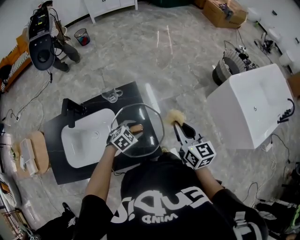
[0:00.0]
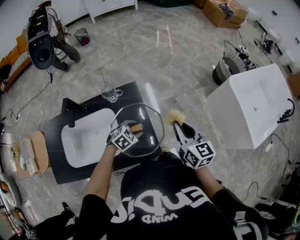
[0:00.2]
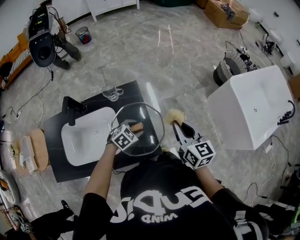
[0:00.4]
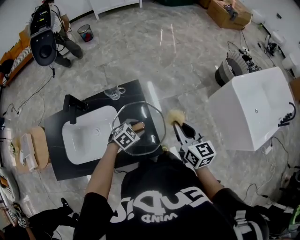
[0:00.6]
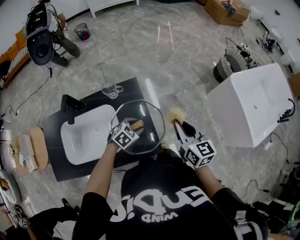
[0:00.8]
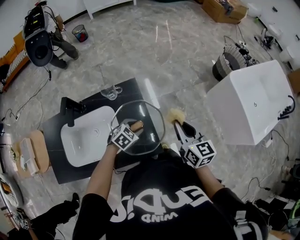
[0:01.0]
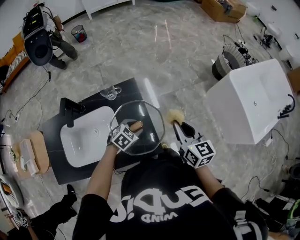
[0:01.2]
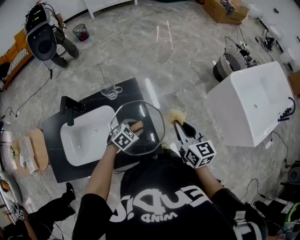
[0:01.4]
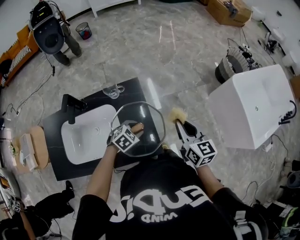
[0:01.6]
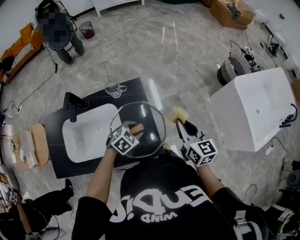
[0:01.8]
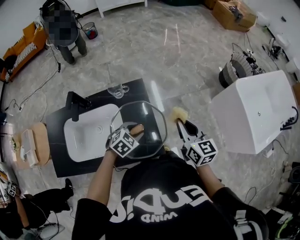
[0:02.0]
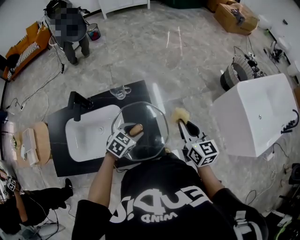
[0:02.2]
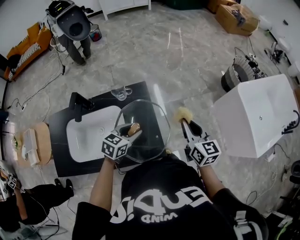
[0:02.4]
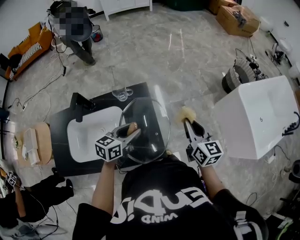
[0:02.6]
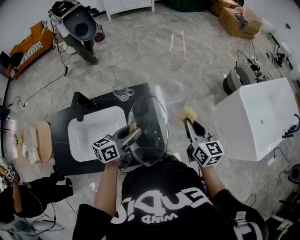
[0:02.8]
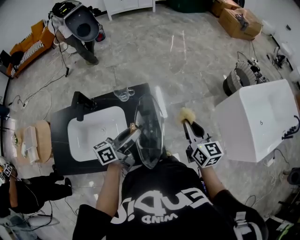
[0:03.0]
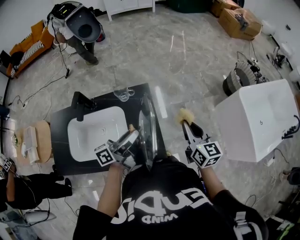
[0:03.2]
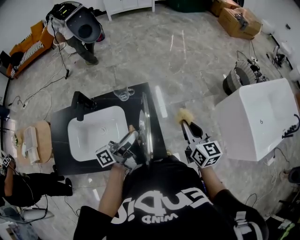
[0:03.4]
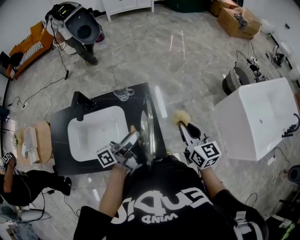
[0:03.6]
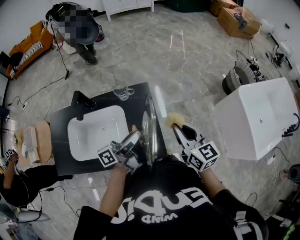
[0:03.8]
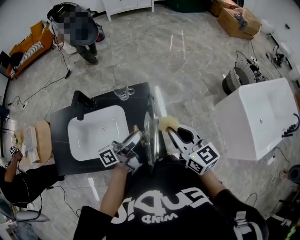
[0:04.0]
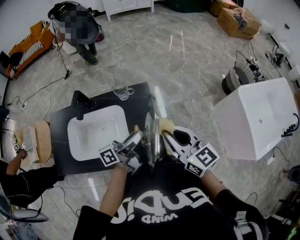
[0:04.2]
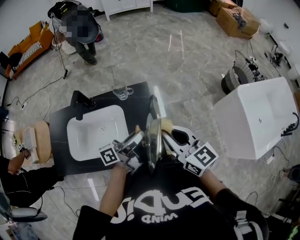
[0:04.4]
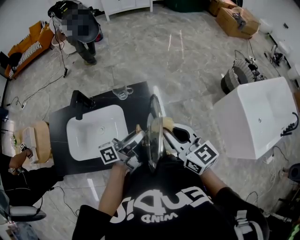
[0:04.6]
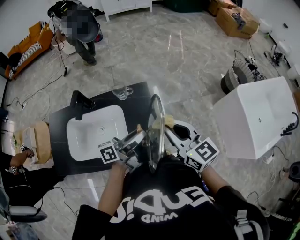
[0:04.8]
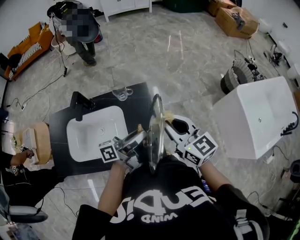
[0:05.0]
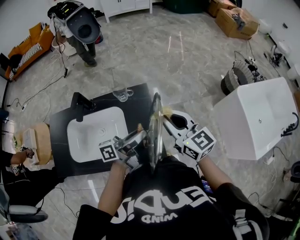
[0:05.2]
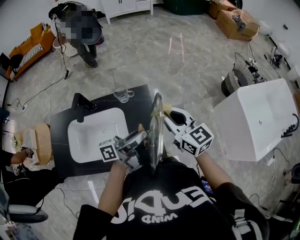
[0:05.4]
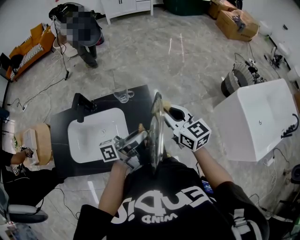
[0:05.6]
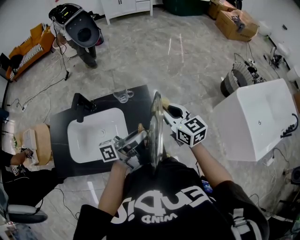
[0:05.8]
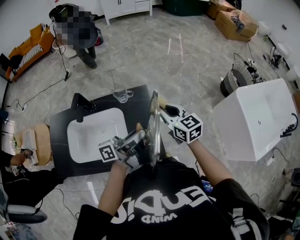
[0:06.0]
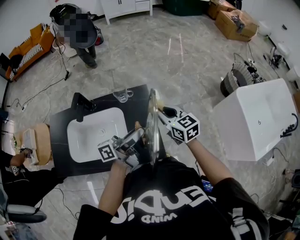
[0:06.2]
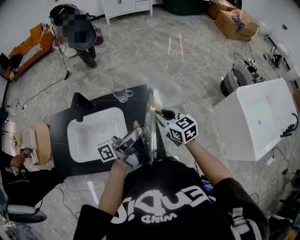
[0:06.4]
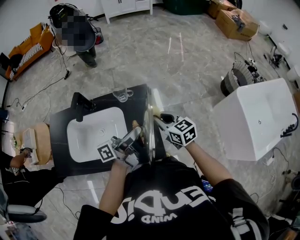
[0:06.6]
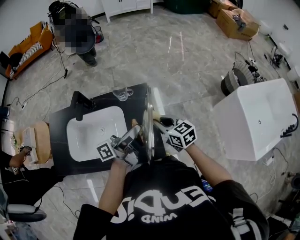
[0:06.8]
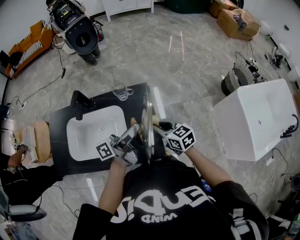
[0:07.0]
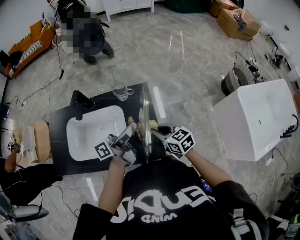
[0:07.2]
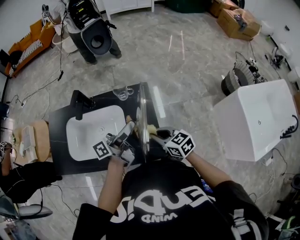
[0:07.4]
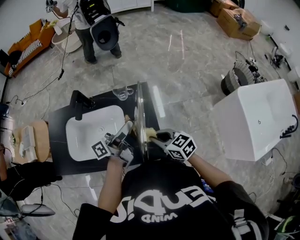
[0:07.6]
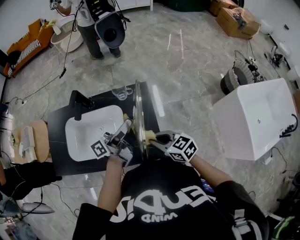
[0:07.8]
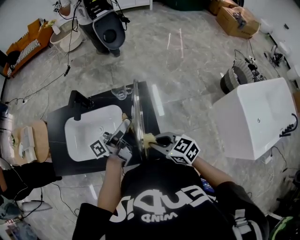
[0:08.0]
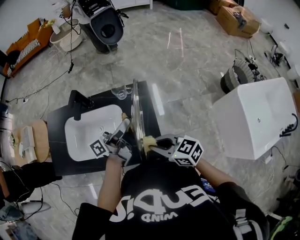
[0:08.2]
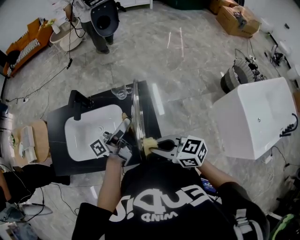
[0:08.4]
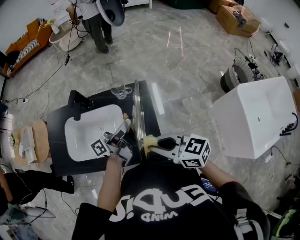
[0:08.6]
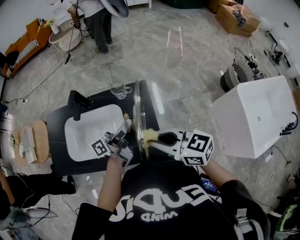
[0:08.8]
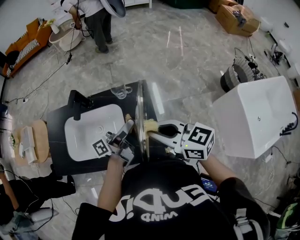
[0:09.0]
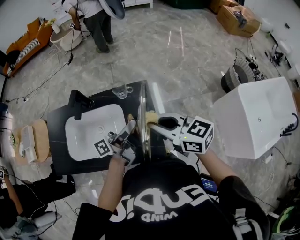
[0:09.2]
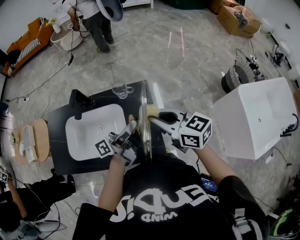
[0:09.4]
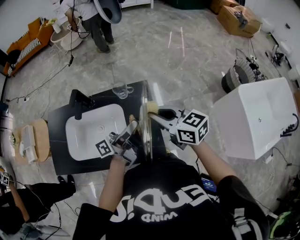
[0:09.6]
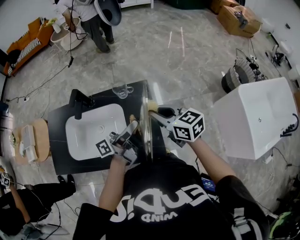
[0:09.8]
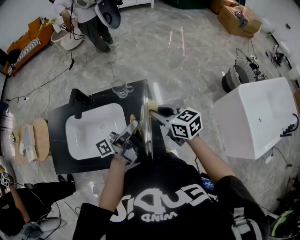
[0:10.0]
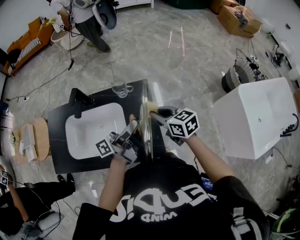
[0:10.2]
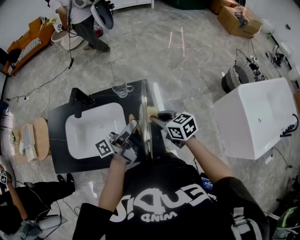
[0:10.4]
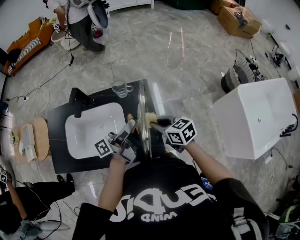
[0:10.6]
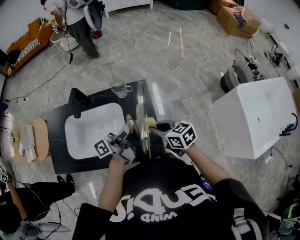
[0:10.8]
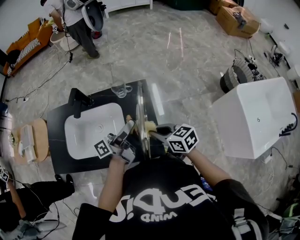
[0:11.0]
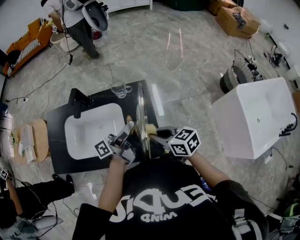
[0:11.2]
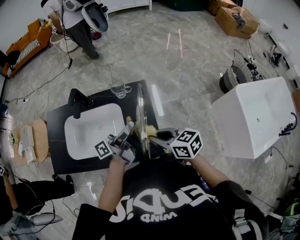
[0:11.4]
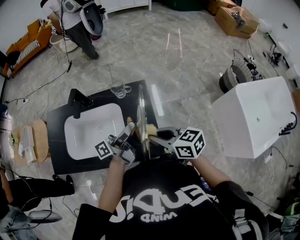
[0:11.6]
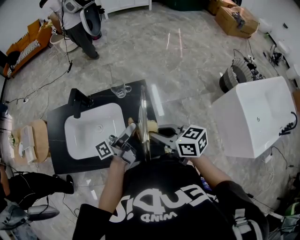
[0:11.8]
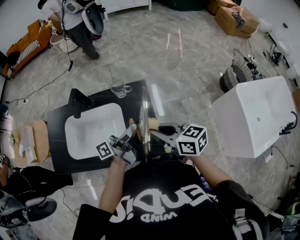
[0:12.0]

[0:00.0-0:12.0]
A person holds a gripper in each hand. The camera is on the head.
0:00.0 to 0:01.6: There are only small adjustments of the grippers.
0:01.6 to 0:03.0: The left gripper goes some 20 cm upward, and angles its fingers upward, by some 60 degrees.
0:03.0 to 0:04.4: The right gripper moves to the left, upward and backward, roughly 15 cm, and swivels some 20 degrees.
0:04.4 to 0:06.0: The right gripper moves forward and downward, roughly 15 cm.
0:06.0 to 0:07.6: The left gripper changes place by approximately 5 cm. The right gripper heads backward, downward and to the left, covering roughly 15 cm, and swivels some 30 degrees.
0:07.6 to 0:09.0: The right gripper travels upward by roughly 15 cm.
0:09.0 to 0:10.4: The right gripper moves downward and forward, about 15 cm, and turns by some 20 degrees.
0:10.4 to 0:12.0: The right gripper goes roughly 10 cm upward and backward.

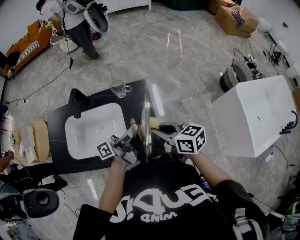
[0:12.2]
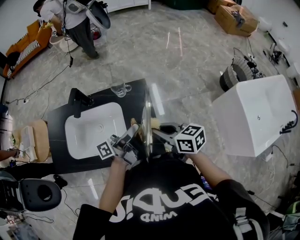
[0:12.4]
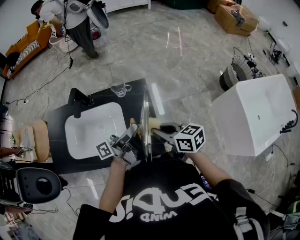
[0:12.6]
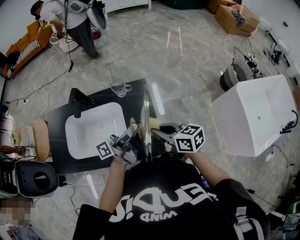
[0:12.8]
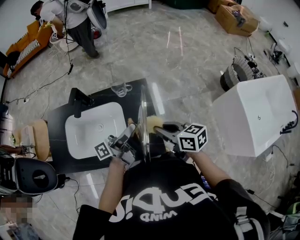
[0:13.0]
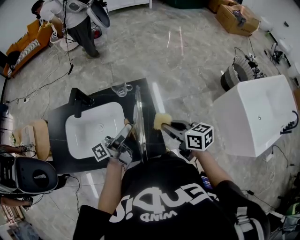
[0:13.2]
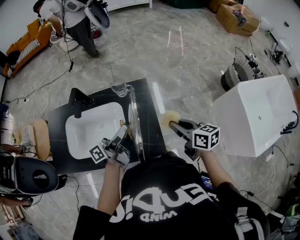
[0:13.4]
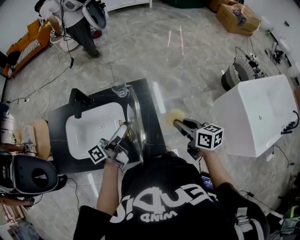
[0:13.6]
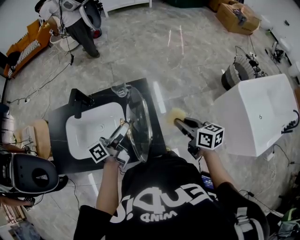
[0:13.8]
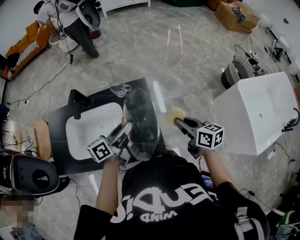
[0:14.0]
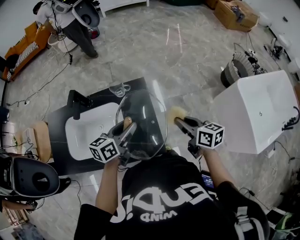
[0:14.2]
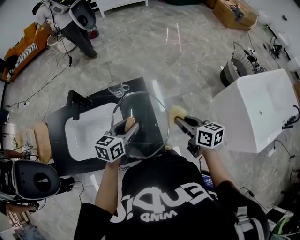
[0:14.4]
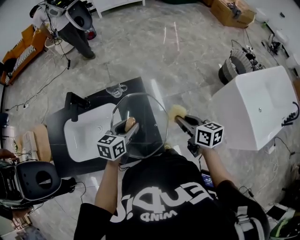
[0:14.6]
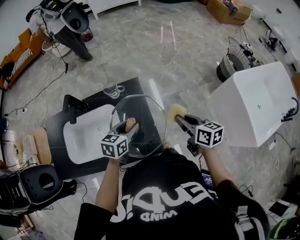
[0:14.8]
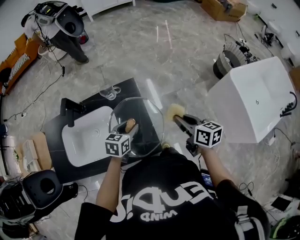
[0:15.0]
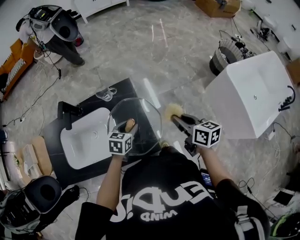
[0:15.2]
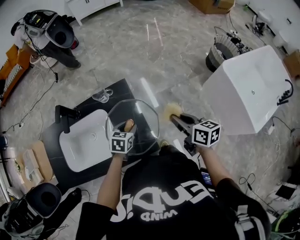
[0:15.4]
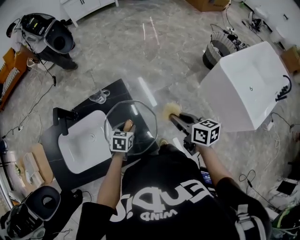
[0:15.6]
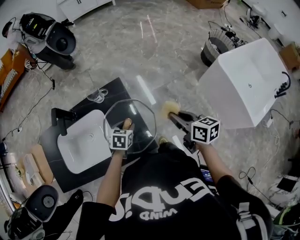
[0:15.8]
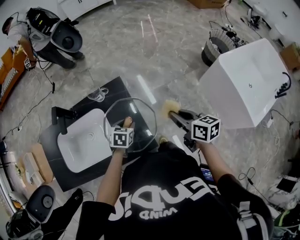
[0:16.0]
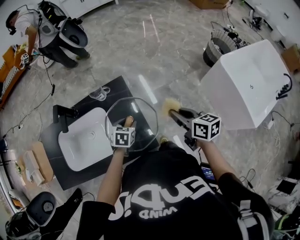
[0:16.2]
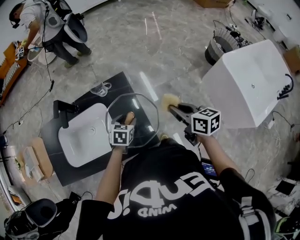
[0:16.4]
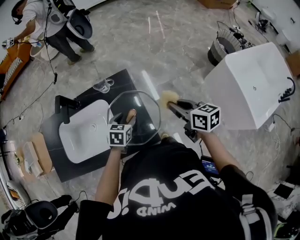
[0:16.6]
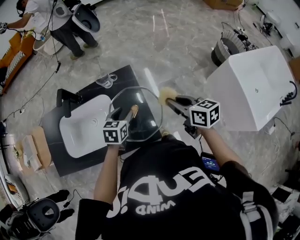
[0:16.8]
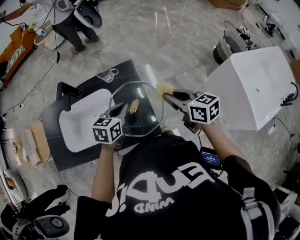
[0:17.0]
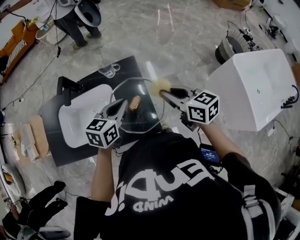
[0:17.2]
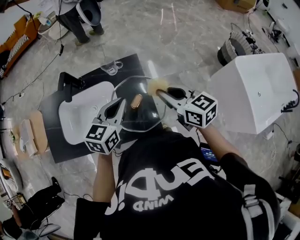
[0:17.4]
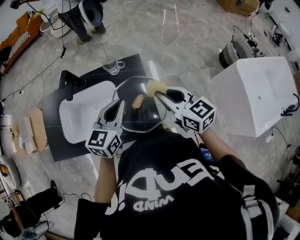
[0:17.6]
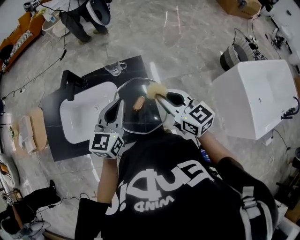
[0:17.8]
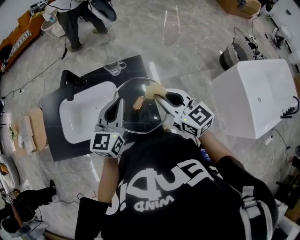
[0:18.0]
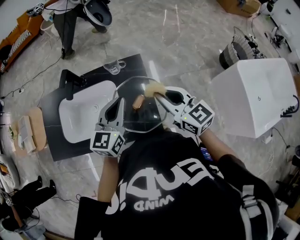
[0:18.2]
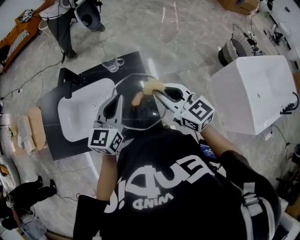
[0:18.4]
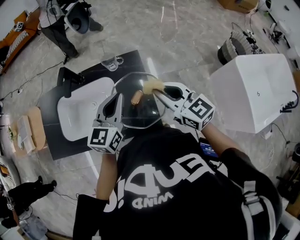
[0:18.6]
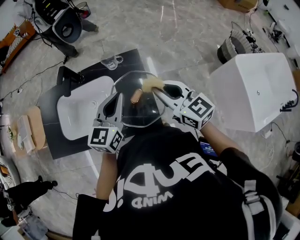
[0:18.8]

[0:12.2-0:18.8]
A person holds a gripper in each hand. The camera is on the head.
0:12.2 to 0:13.8: The right gripper goes roughly 10 cm to the right. The left gripper changes place by approximately 5 cm, and changes its angle by some 20 degrees.
0:13.8 to 0:15.4: The left gripper travels downward and to the right by roughly 15 cm, and points its fingers approximately 50 degrees further downward. The right gripper ends up some 5 cm from where it was.
0:15.4 to 0:17.2: The left gripper travels upward by some 15 cm, changes its angle by roughly 20 degrees, and closes its fingers. Meanwhile the right gripper is displaced to the left and upward by some 10 cm, and changes its angle by about 20 degrees.
0:17.2 to 0:18.8: The right gripper ends up some 5 cm from where it was, and swivels approximately 20 degrees, while the left gripper ends up about 5 cm from where it was, and turns by approximately 20 degrees.

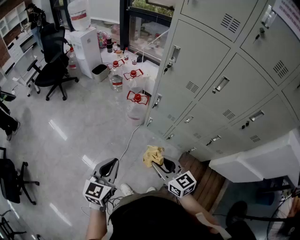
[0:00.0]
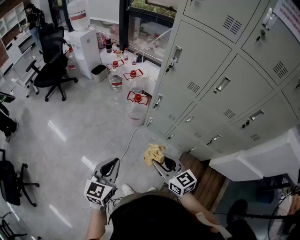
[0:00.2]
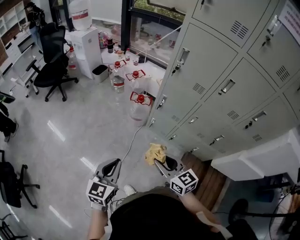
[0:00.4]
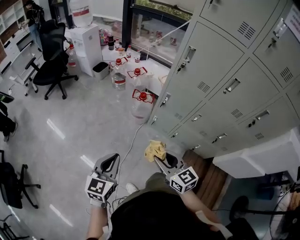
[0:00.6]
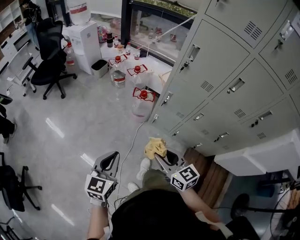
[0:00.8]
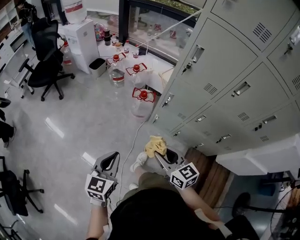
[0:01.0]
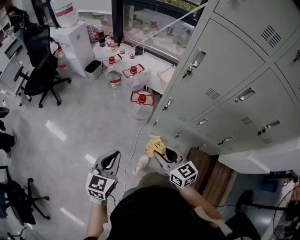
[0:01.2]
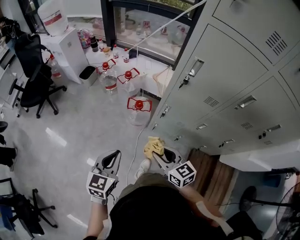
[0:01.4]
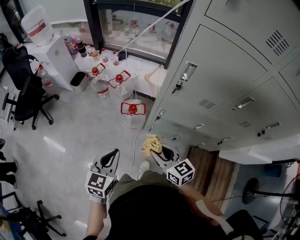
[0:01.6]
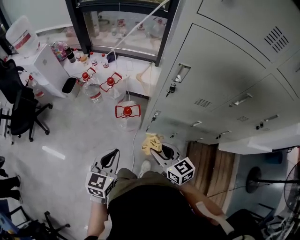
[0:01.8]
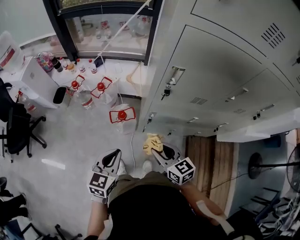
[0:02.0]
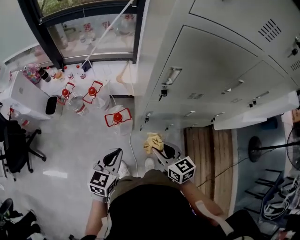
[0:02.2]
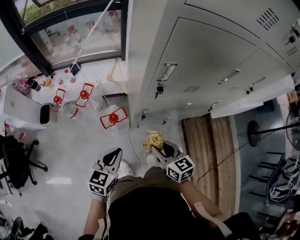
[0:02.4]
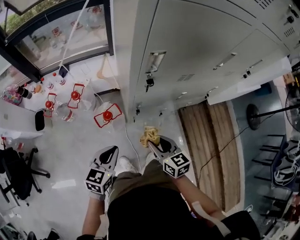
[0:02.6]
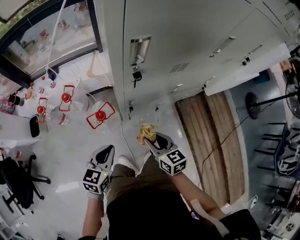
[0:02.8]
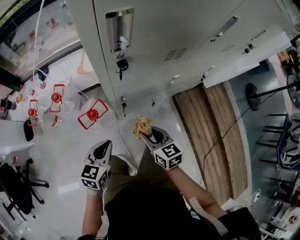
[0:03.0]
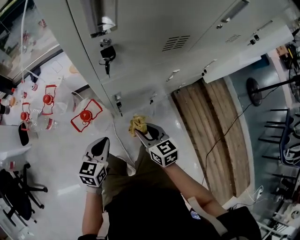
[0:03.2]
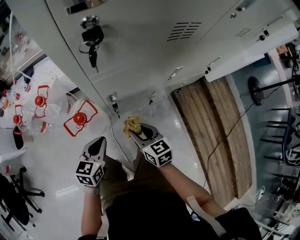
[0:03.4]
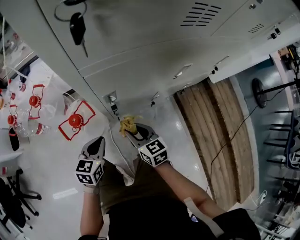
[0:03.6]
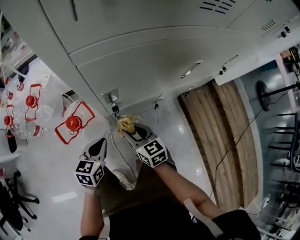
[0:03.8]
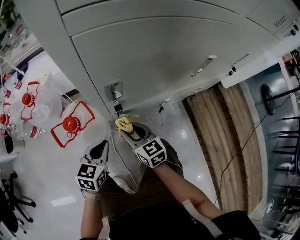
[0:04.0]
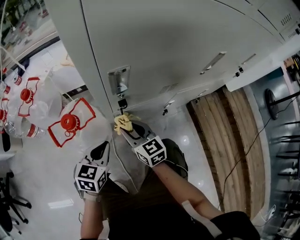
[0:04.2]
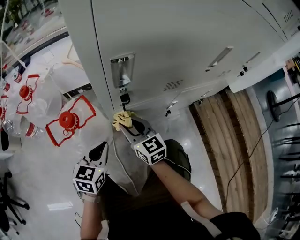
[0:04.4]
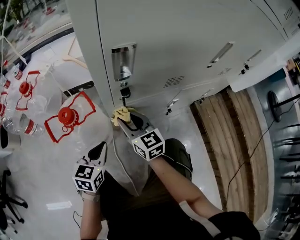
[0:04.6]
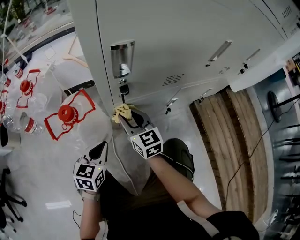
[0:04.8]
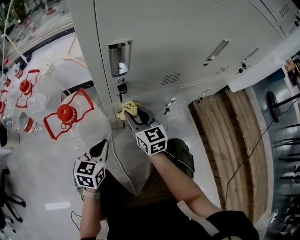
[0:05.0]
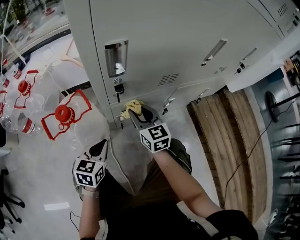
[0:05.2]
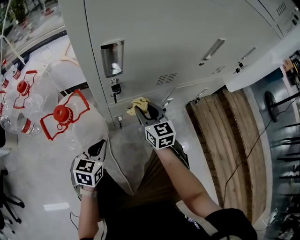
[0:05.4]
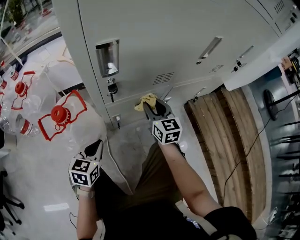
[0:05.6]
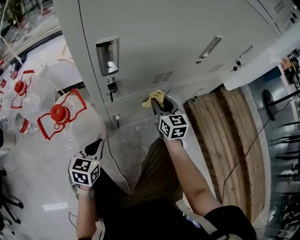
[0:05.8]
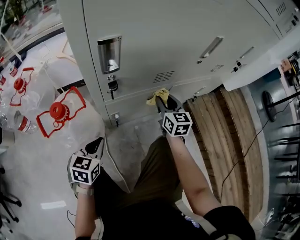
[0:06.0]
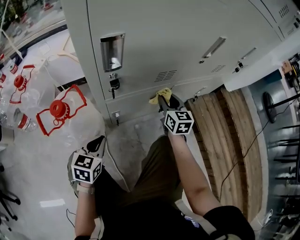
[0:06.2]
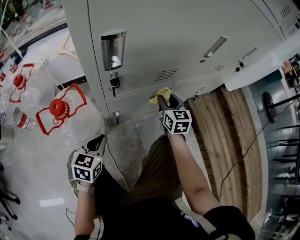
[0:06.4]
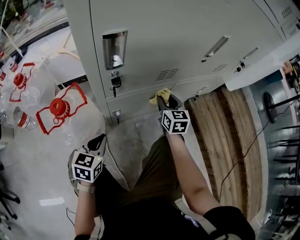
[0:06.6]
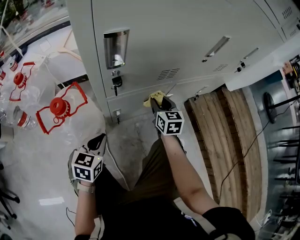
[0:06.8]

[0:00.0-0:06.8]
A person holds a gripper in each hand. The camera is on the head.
0:00.0 to 0:01.4: Both grippers move forward, roughly 25 cm.
0:01.4 to 0:02.8: The right gripper changes place by about 20 cm, and swivels roughly 50 degrees, while the left gripper changes place by approximately 25 cm, and changes its angle by approximately 40 degrees.
0:02.8 to 0:04.0: The two grippers go approximately 40 cm downward.
0:04.0 to 0:05.4: The right gripper shifts some 10 cm to the right and forward; the left gripper heads downward, covering roughly 10 cm.
0:05.4 to 0:06.8: The right gripper moves to the right, approximately 10 cm.
